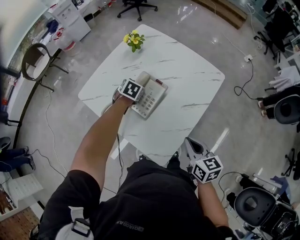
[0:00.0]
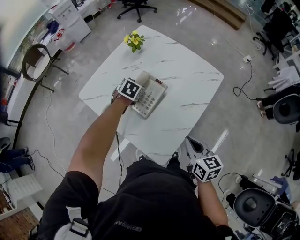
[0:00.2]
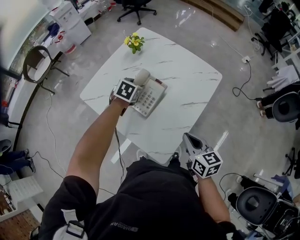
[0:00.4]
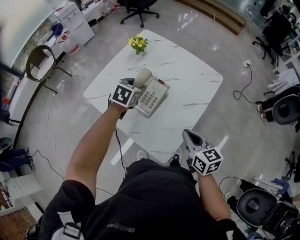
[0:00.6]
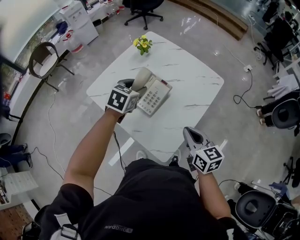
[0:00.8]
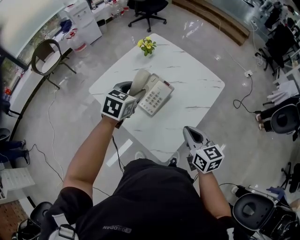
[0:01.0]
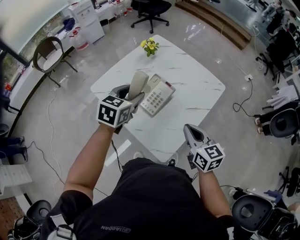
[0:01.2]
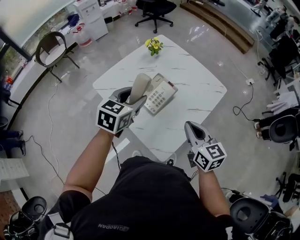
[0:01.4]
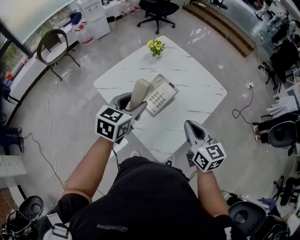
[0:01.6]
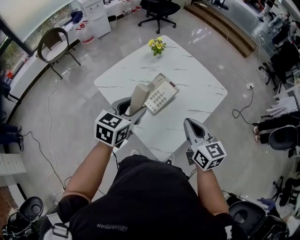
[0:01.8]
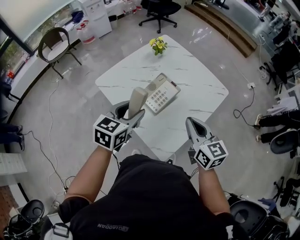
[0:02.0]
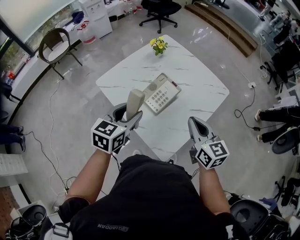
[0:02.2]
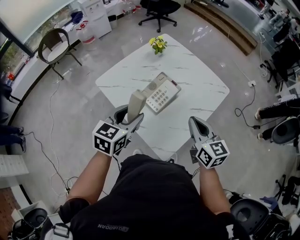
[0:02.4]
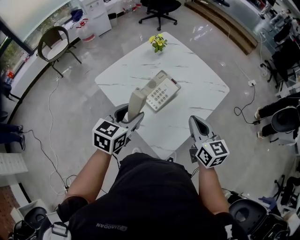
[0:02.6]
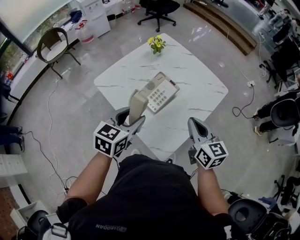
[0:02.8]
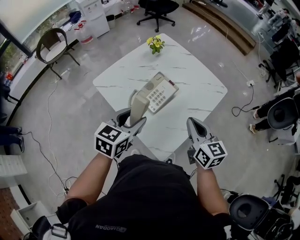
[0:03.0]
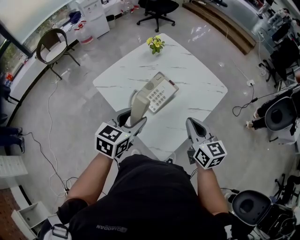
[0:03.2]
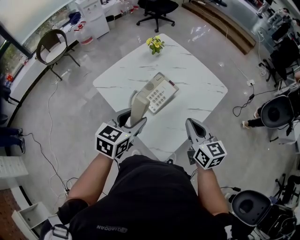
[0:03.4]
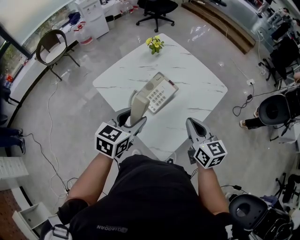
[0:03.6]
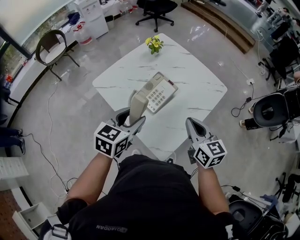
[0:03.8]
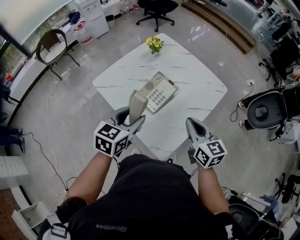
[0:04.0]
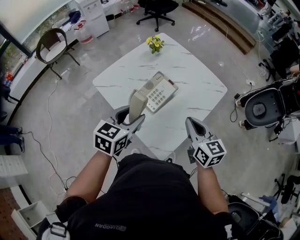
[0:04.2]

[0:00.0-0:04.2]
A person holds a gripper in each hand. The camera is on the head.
0:00.0 to 0:01.4: The right gripper moves upward and to the left, some 10 cm. The left gripper shifts some 30 cm upward and backward, and tips its fingers upward by some 30 degrees.
0:01.4 to 0:02.8: The left gripper moves backward, approximately 10 cm.
0:02.8 to 0:04.2: Both grippers stay put.

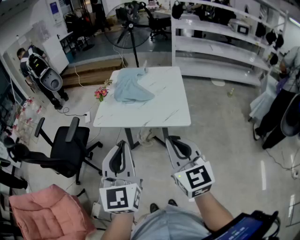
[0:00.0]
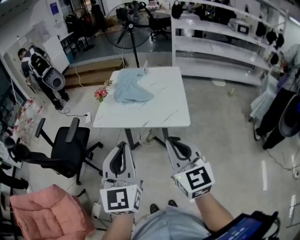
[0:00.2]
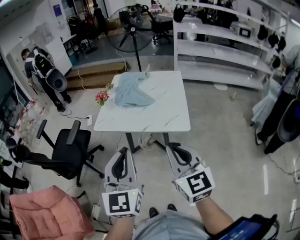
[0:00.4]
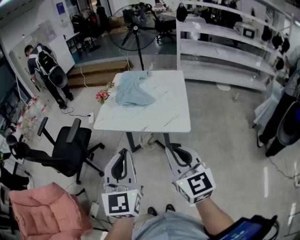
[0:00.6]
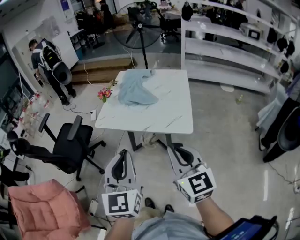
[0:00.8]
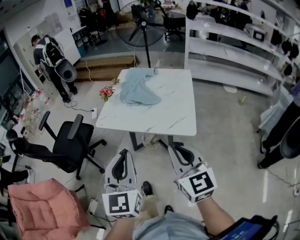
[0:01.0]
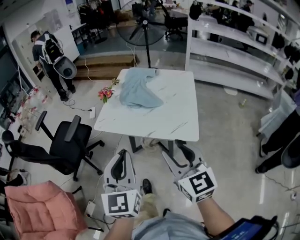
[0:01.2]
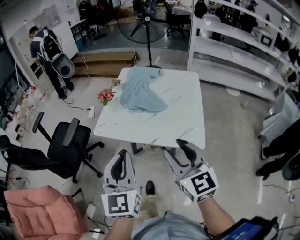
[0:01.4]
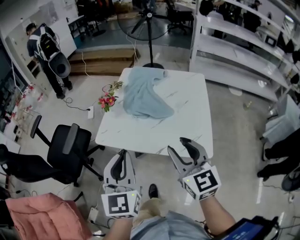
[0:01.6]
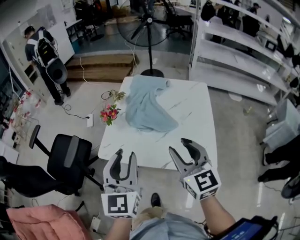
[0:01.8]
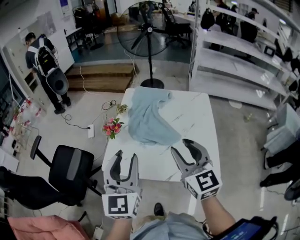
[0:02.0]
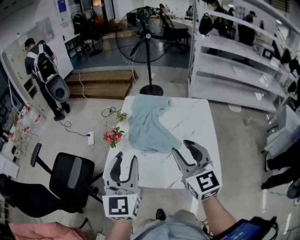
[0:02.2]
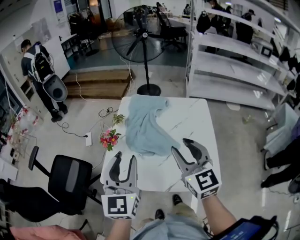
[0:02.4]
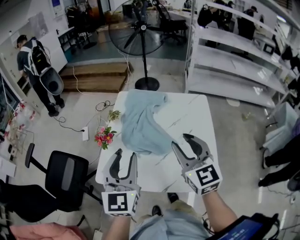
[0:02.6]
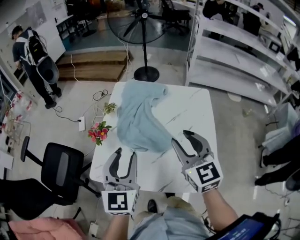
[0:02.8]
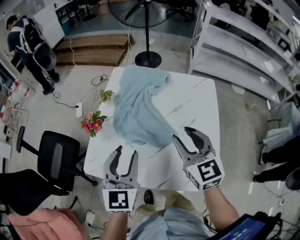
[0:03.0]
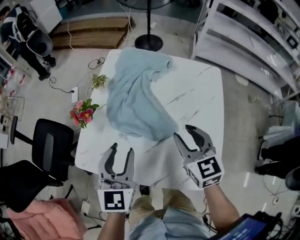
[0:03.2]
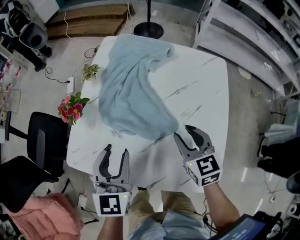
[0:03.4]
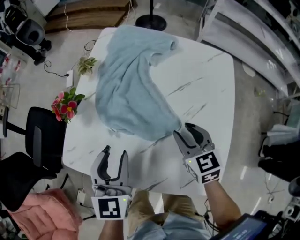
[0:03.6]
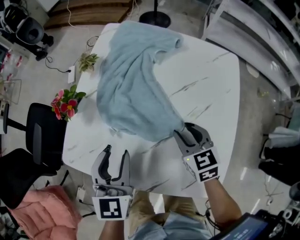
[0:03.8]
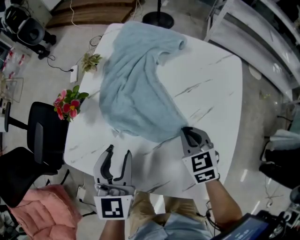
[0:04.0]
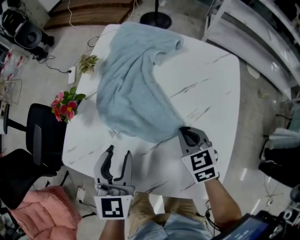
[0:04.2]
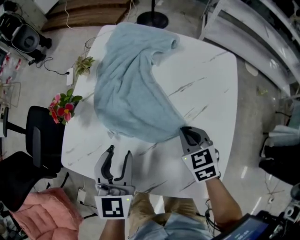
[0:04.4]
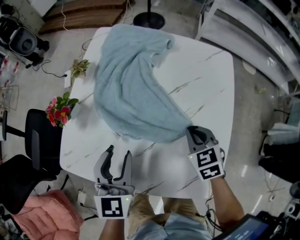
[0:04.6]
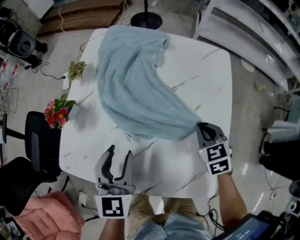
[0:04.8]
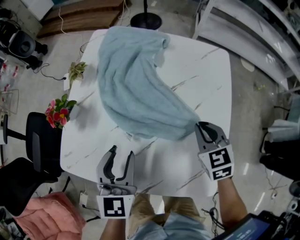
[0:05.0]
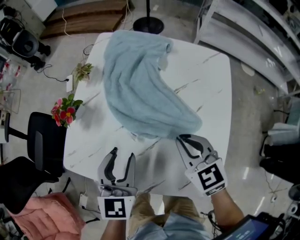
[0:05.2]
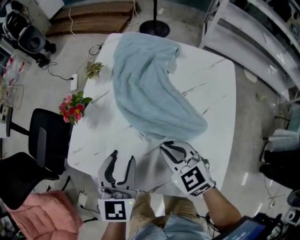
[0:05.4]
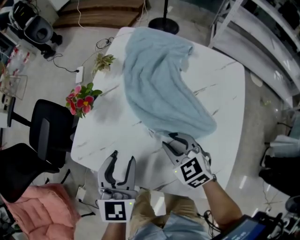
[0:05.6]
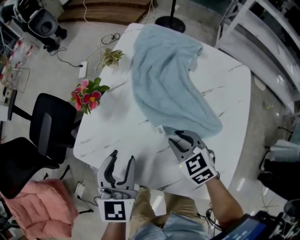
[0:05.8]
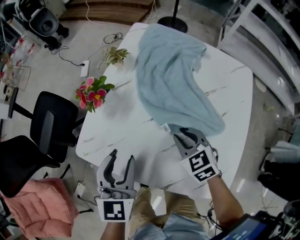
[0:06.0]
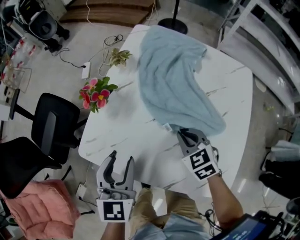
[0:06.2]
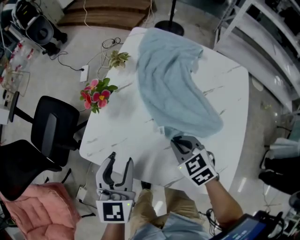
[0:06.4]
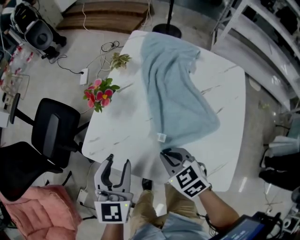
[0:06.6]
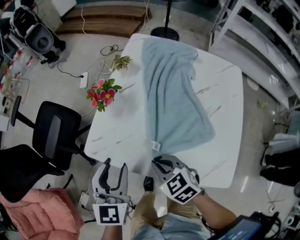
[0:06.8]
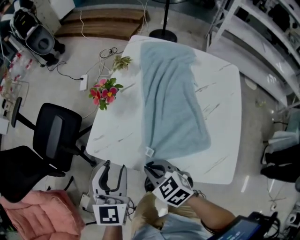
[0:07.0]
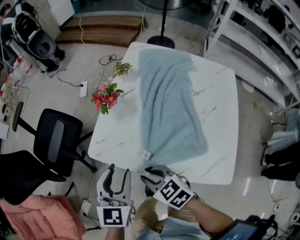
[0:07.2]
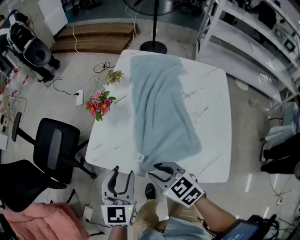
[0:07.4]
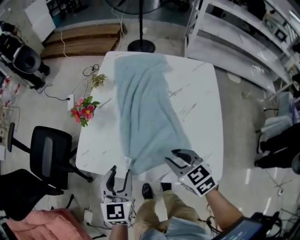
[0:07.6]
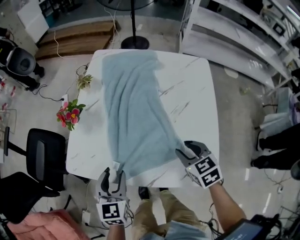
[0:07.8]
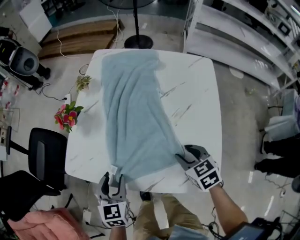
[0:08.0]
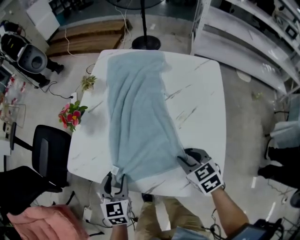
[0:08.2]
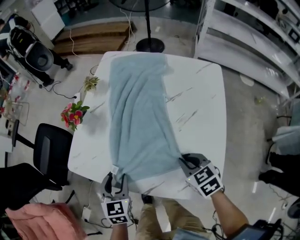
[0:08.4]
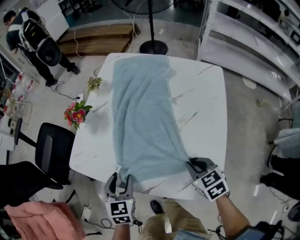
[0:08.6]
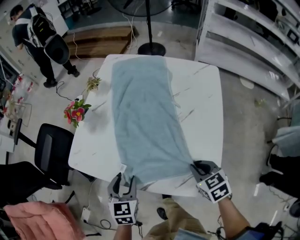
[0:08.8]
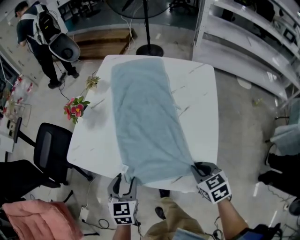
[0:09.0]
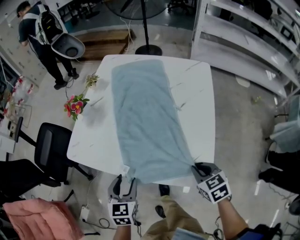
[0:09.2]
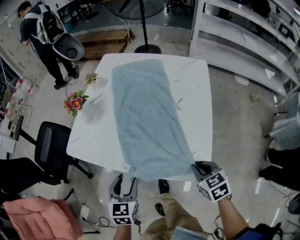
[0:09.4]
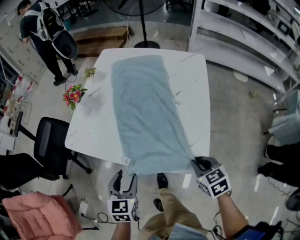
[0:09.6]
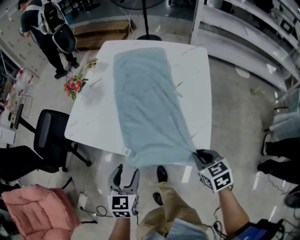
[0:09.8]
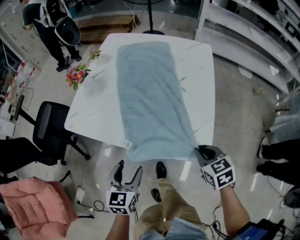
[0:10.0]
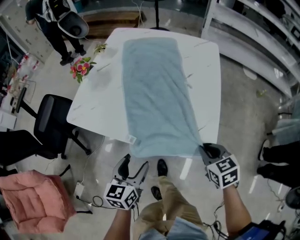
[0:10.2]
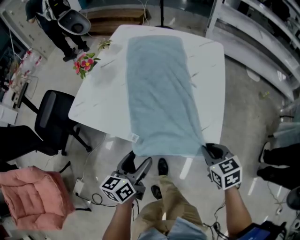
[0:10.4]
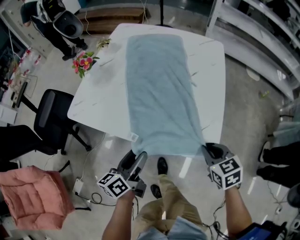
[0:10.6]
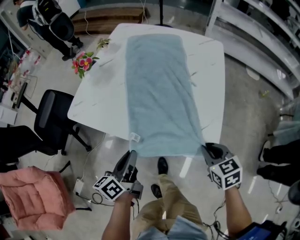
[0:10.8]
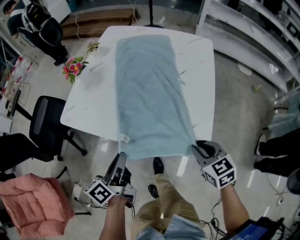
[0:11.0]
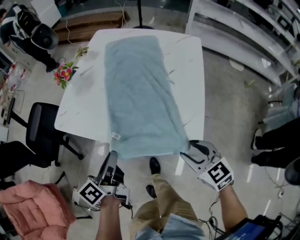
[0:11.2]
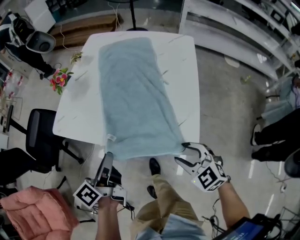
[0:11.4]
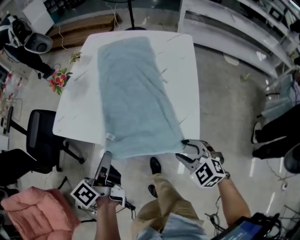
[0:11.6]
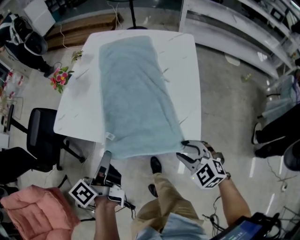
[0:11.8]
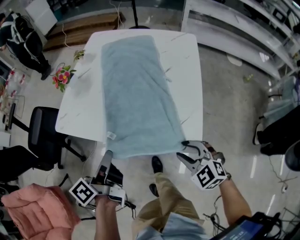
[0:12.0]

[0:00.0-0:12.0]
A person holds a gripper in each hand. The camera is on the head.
0:00.0 to 0:01.6: Both grippers travel together forward, some 20 cm. The right gripper opens up.
0:01.6 to 0:03.0: The two grippers go about 25 cm forward. The left gripper opens its fingers.
0:03.0 to 0:04.4: The right gripper shifts roughly 20 cm downward, swivels roughly 30 degrees, and closes up, while the left gripper moves downward, roughly 10 cm.
0:04.4 to 0:06.0: The two grippers go roughly 10 cm to the left.
0:06.0 to 0:07.6: The right gripper shifts roughly 15 cm backward and upward, and moves some 20 cm to the left and comes back. The left gripper moves backward, roughly 5 cm, and goes to the left and returns, some 10 cm each way.
0:07.6 to 0:09.0: The left gripper shifts about 10 cm downward, to the right and backward, while the right gripper shifts about 20 cm to the right and backward.
0:09.0 to 0:10.4: Both grippers move backward, about 5 cm. The left gripper swivels about 40 degrees.
0:10.4 to 0:12.0: The left gripper is displaced upward by approximately 10 cm, changes its angle by some 40 degrees, and closes its fingers, while the right gripper goes roughly 5 cm to the left, swivels about 40 degrees, and opens up.

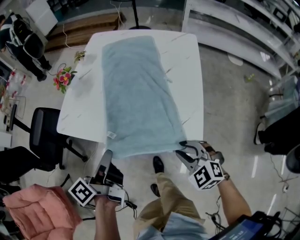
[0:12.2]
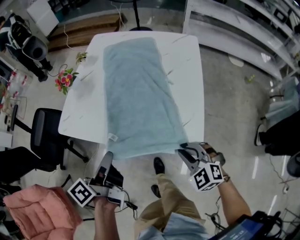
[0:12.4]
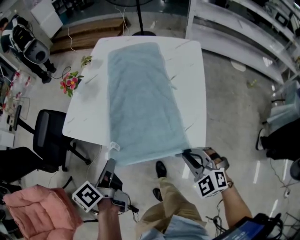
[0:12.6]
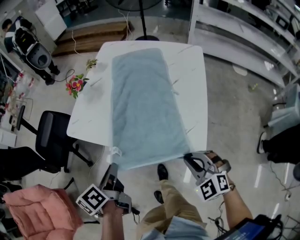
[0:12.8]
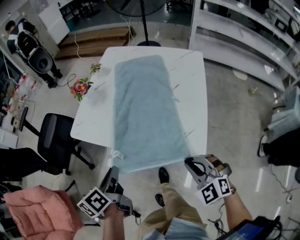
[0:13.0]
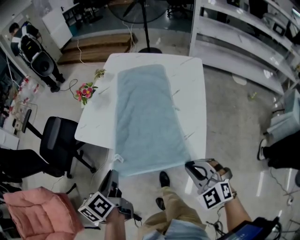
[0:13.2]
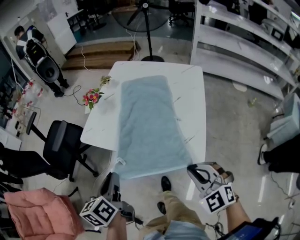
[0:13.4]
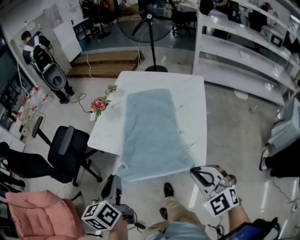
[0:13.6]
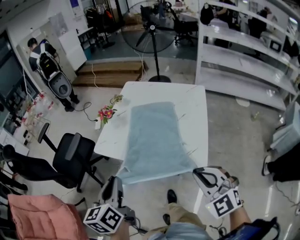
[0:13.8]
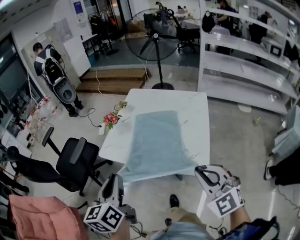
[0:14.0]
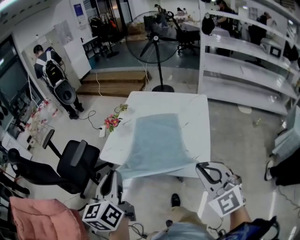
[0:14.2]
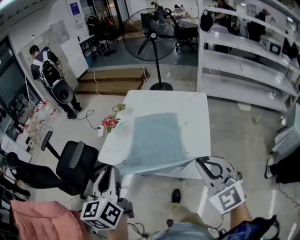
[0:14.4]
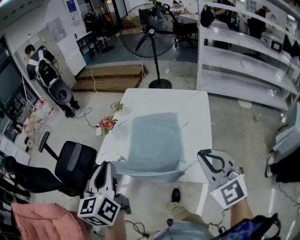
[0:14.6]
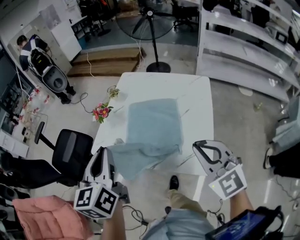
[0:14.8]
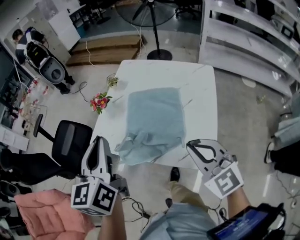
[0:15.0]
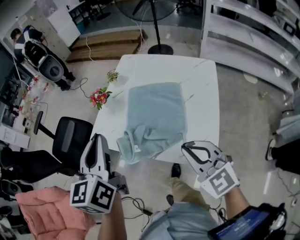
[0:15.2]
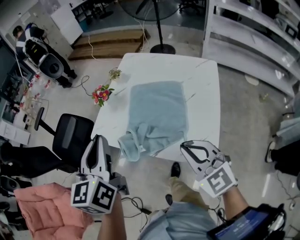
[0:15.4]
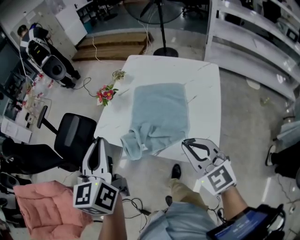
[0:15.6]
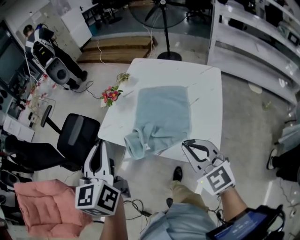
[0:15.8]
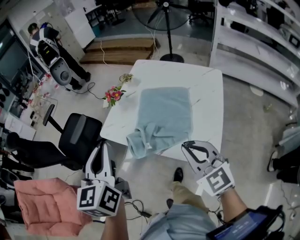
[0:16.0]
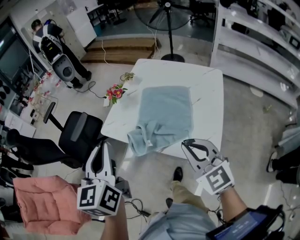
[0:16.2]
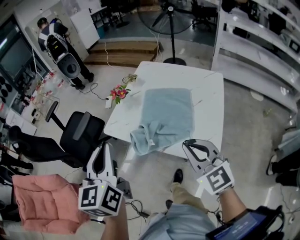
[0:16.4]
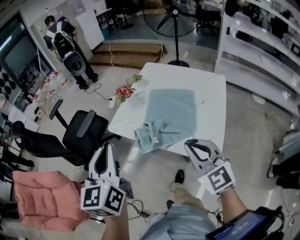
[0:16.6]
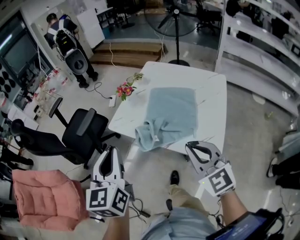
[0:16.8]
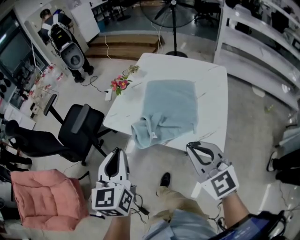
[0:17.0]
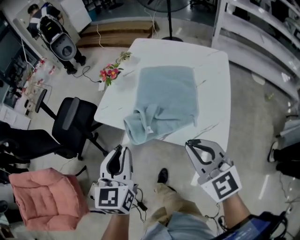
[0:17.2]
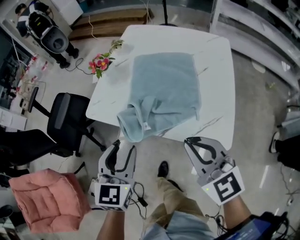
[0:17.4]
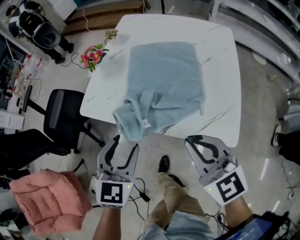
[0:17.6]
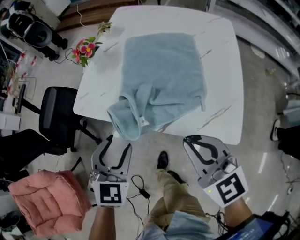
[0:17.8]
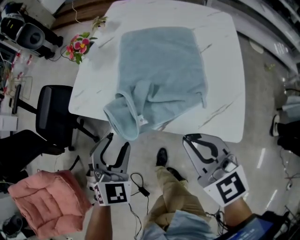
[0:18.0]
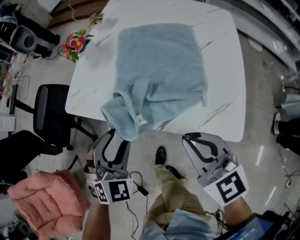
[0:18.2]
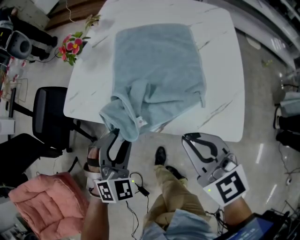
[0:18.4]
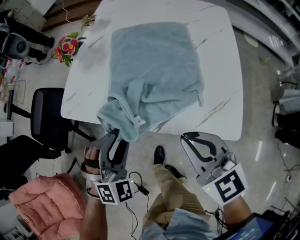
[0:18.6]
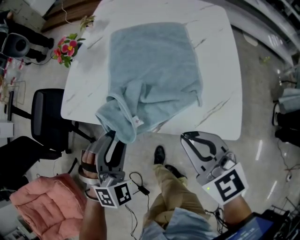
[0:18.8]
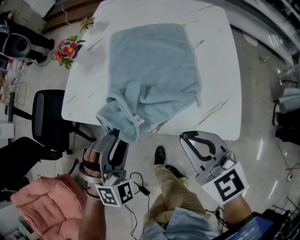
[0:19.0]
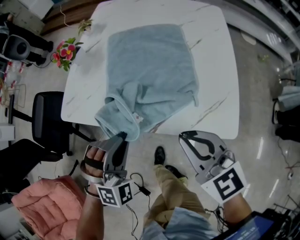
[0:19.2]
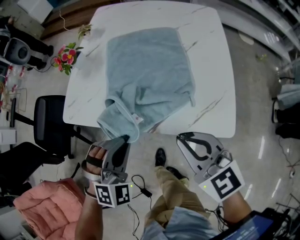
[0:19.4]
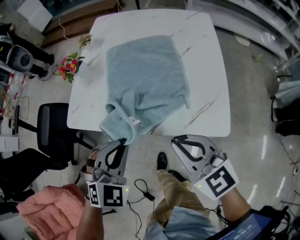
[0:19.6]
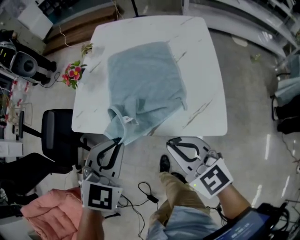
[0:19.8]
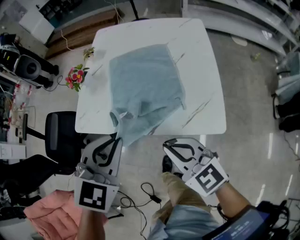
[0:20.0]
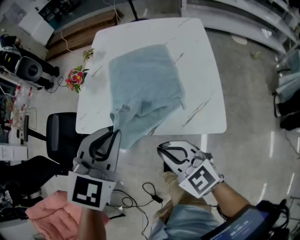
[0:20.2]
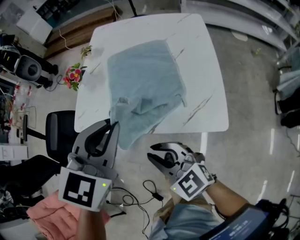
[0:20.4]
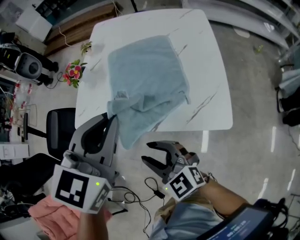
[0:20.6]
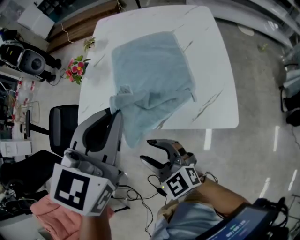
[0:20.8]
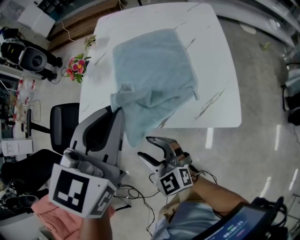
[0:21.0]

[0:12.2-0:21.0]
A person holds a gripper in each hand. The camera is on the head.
0:12.2 to 0:13.6: The right gripper travels upward by about 20 cm, and closes its fingers; the left gripper goes approximately 15 cm upward, backward and to the left, and twists some 40 degrees clockwise, seen from behind.
0:13.6 to 0:15.2: The left gripper heads forward and upward, covering about 20 cm, and changes its angle by about 20 degrees. Meanwhile the right gripper heads forward, covering about 15 cm.
0:15.2 to 0:16.6: The right gripper shifts approximately 5 cm to the left, while the left gripper shifts roughly 15 cm backward and to the left.
0:16.6 to 0:18.0: The right gripper heads downward, covering roughly 15 cm; the left gripper shifts about 30 cm downward, rotates around the line of its fingers by approximately 50 degrees, clockwise from behind, and opens.
0:18.0 to 0:19.6: The left gripper goes about 5 cm to the right, and closes.
0:19.6 to 0:21.0: The right gripper travels to the left and downward by approximately 15 cm, and opens up. Meanwhile the left gripper is displaced upward by some 15 cm, and turns by some 40 degrees.
